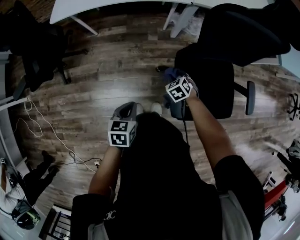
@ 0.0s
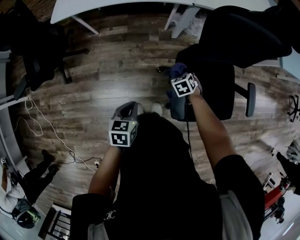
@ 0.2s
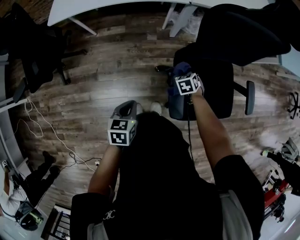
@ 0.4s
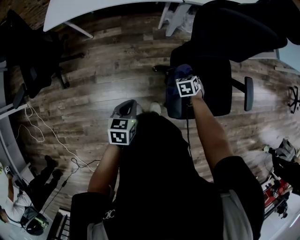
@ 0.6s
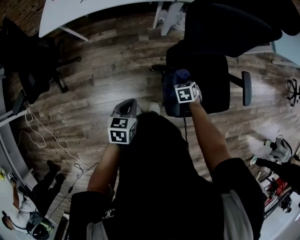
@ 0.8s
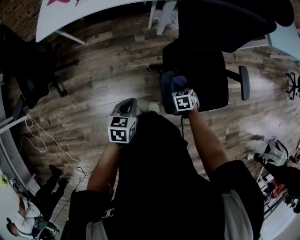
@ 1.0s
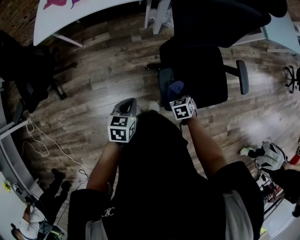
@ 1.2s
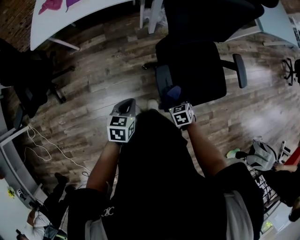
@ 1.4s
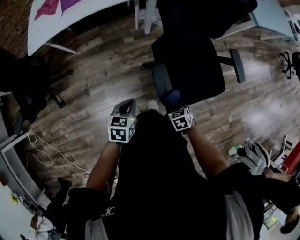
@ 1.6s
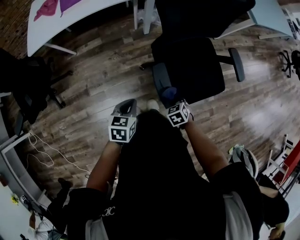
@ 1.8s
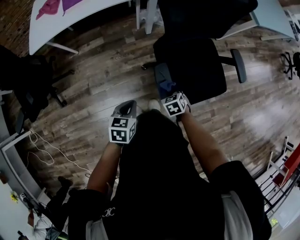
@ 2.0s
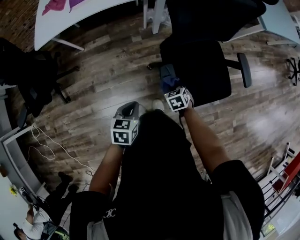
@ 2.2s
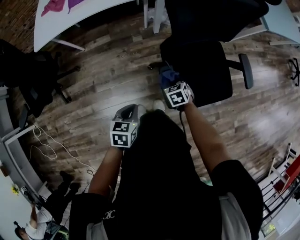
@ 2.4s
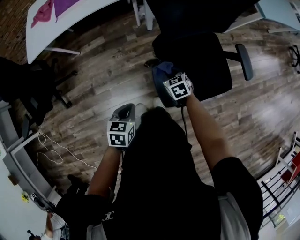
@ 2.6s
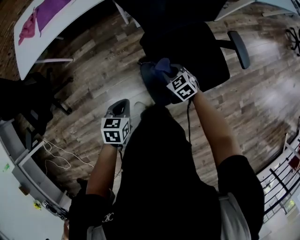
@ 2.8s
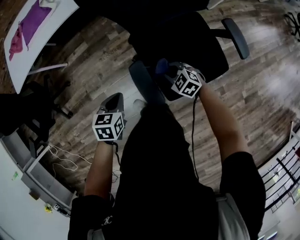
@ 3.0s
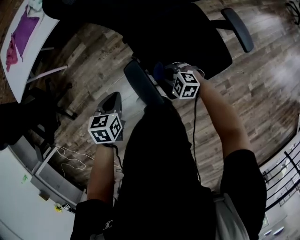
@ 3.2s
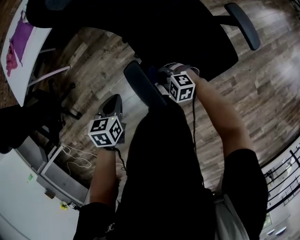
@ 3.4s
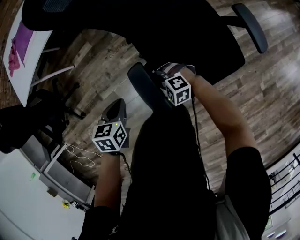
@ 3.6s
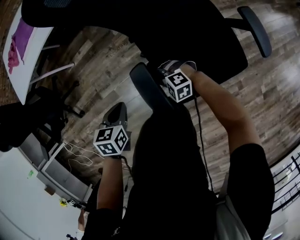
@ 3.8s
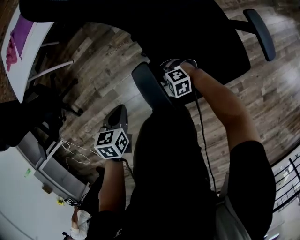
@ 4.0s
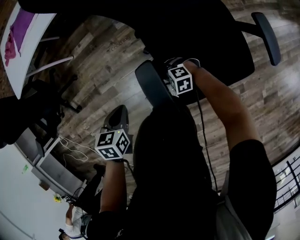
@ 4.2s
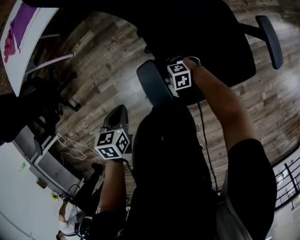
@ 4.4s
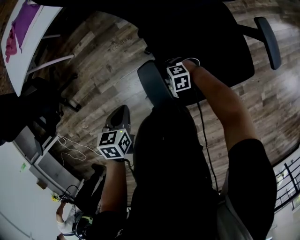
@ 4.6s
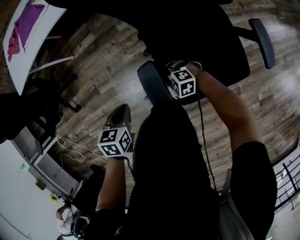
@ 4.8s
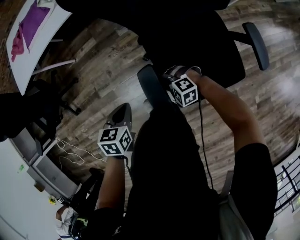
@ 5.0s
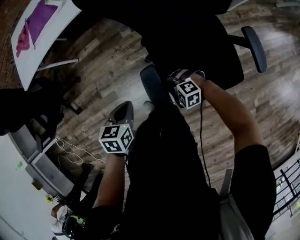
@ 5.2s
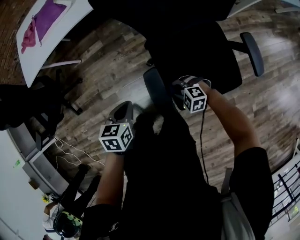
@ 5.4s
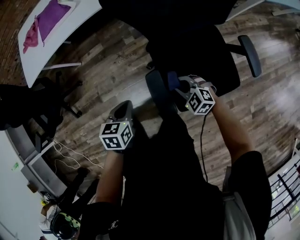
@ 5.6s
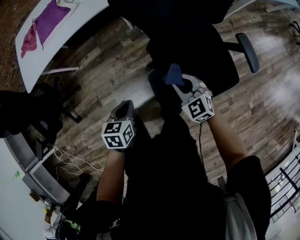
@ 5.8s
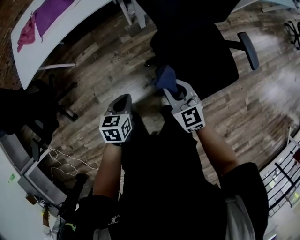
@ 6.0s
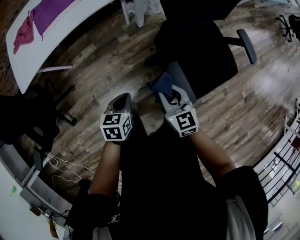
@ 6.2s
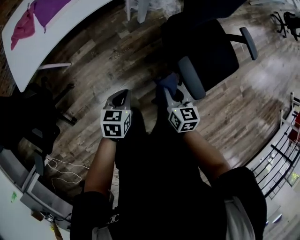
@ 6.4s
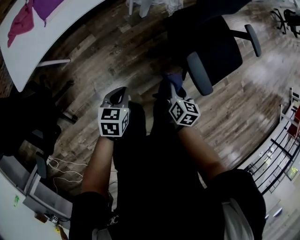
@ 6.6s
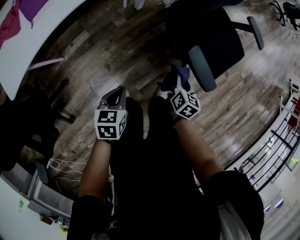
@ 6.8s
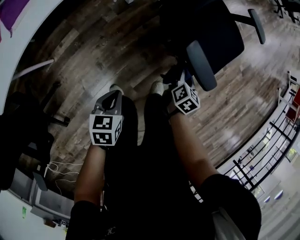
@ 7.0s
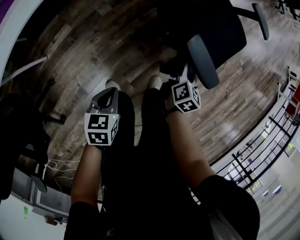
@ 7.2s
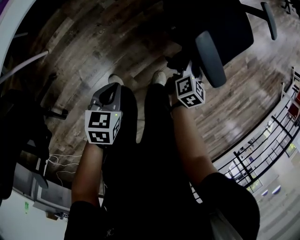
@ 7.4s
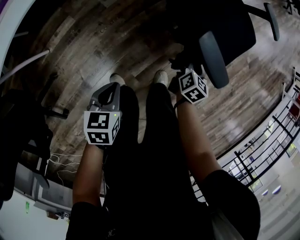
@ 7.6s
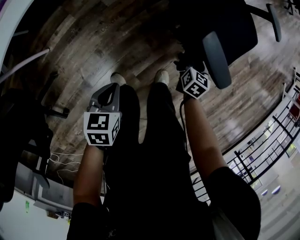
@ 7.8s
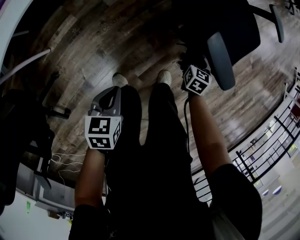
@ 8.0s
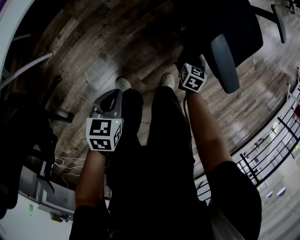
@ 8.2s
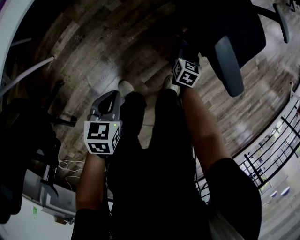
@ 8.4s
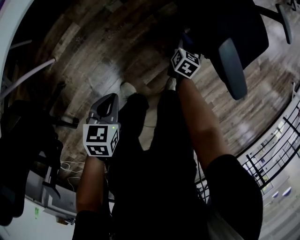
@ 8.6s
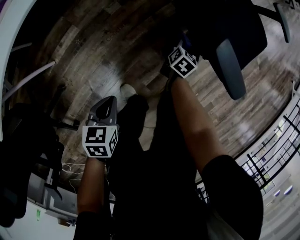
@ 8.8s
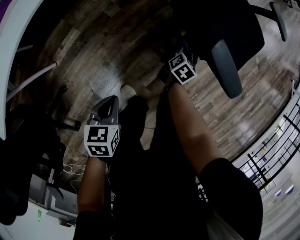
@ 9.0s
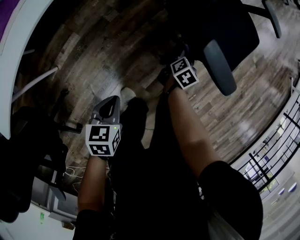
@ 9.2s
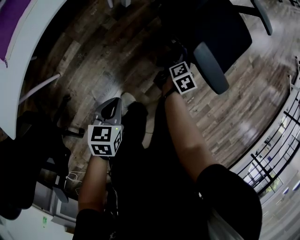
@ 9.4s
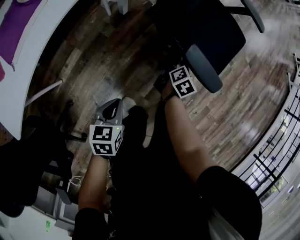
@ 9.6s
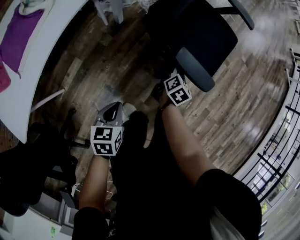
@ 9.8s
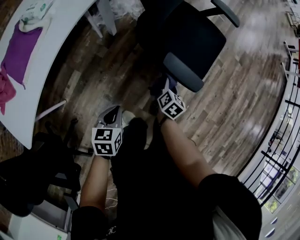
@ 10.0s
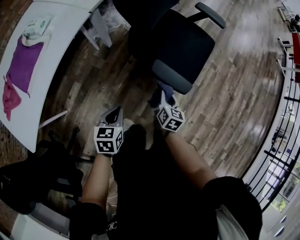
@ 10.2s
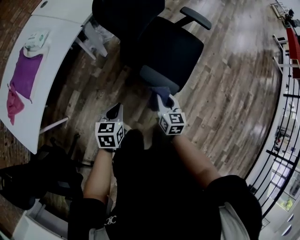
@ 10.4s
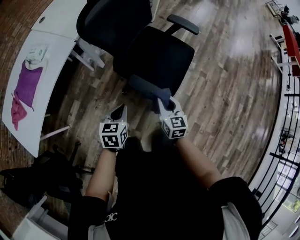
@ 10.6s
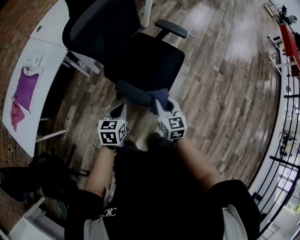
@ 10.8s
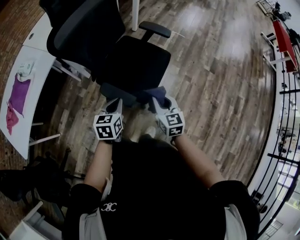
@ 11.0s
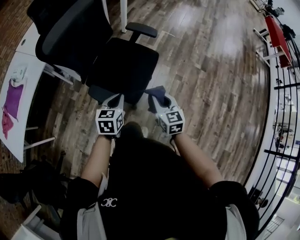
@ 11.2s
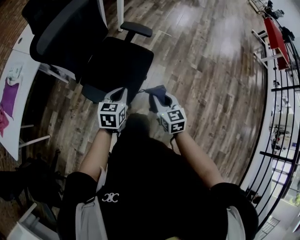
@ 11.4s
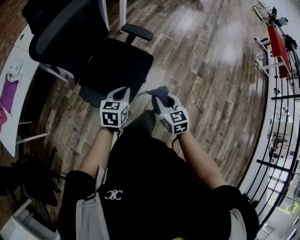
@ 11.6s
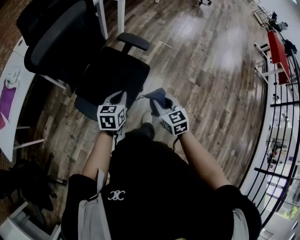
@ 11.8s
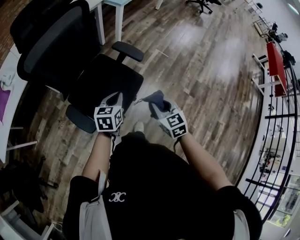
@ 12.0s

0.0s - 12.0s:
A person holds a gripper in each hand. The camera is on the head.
0.0s - 1.6s: The right gripper is displaced backward and to the right by about 20 cm, and turns by approximately 30 degrees.
1.6s - 3.0s: The right gripper moves forward, approximately 15 cm, and turns by some 30 degrees. The left gripper shifts approximately 5 cm forward.
3.0s - 4.4s: The left gripper moves downward, some 5 cm, while the right gripper shifts about 15 cm downward, and turns by approximately 40 degrees.
4.4s - 6.0s: The right gripper shifts approximately 30 cm upward, and angles its fingers upward, by roughly 30 degrees. The left gripper goes some 5 cm upward.
6.0s - 7.6s: The left gripper changes place by some 20 cm, and rotates some 20 degrees. Meanwhile the right gripper travels downward by some 25 cm, and turns by about 80 degrees.
7.6s - 9.0s: The right gripper heads downward and to the left, covering approximately 15 cm. Meanwhile the left gripper shifts by approximately 5 cm.
9.0s - 10.4s: The left gripper goes approximately 25 cm upward, forward and to the right, while the right gripper goes roughly 30 cm upward, and rotates approximately 30 degrees.
10.4s - 12.0s: Both grippers are carried to the right and forward, some 50 cm. The right gripper turns by about 30 degrees.

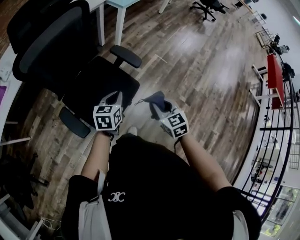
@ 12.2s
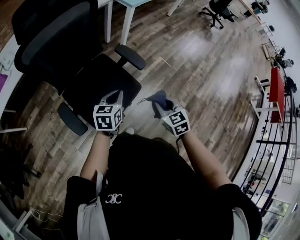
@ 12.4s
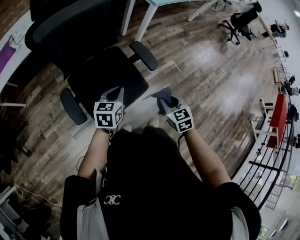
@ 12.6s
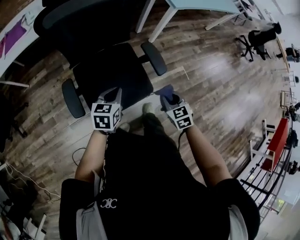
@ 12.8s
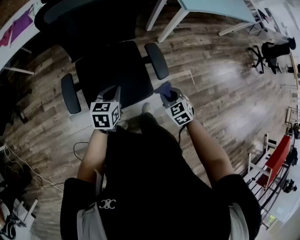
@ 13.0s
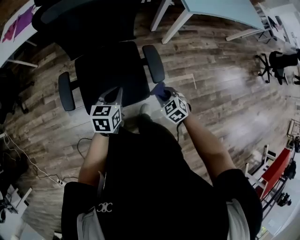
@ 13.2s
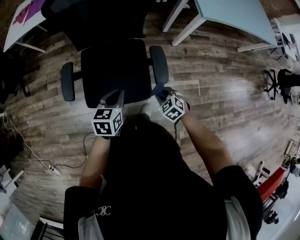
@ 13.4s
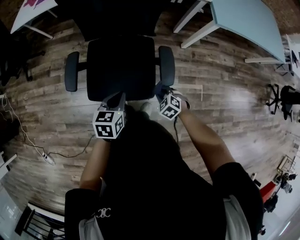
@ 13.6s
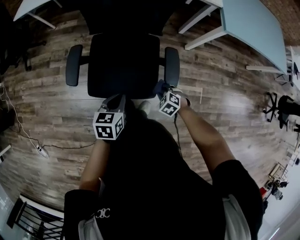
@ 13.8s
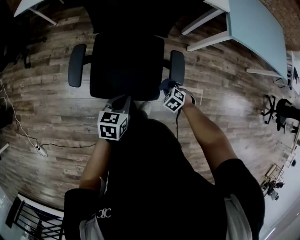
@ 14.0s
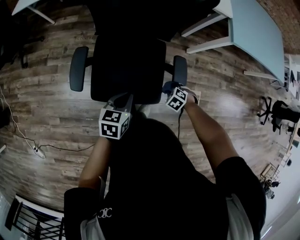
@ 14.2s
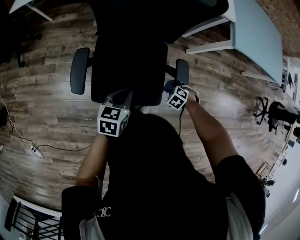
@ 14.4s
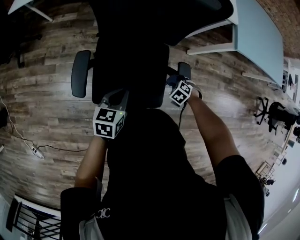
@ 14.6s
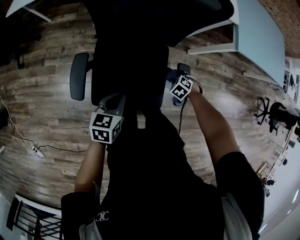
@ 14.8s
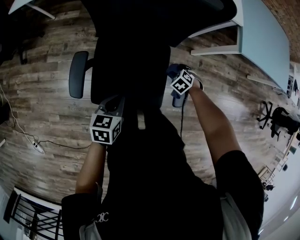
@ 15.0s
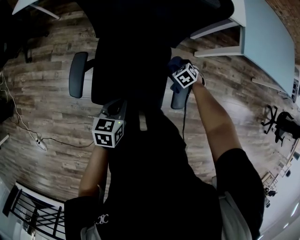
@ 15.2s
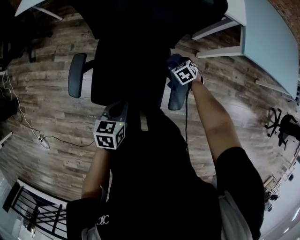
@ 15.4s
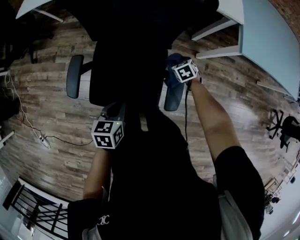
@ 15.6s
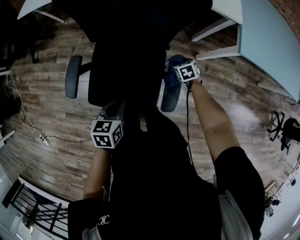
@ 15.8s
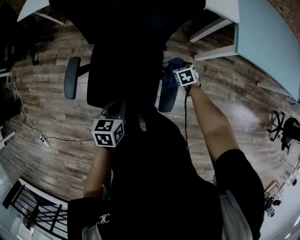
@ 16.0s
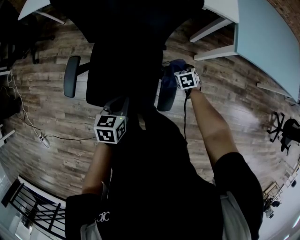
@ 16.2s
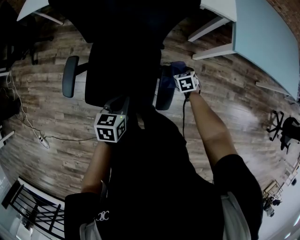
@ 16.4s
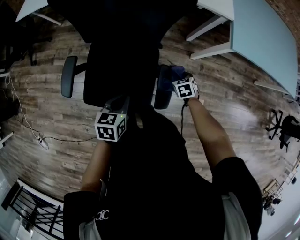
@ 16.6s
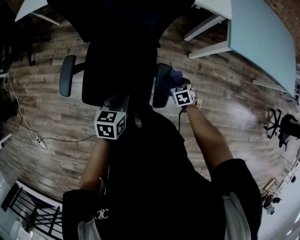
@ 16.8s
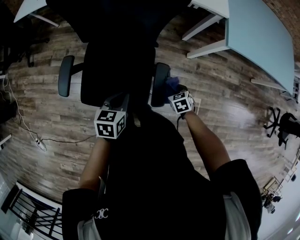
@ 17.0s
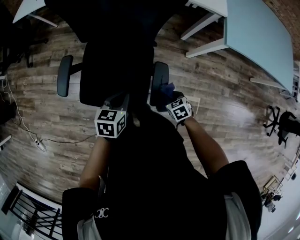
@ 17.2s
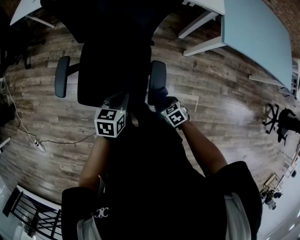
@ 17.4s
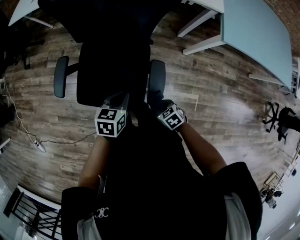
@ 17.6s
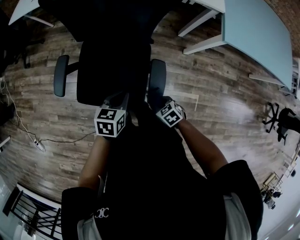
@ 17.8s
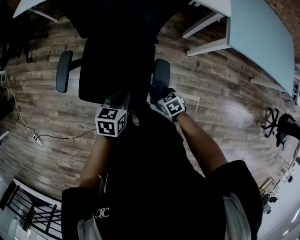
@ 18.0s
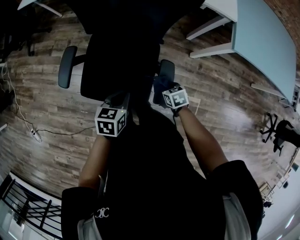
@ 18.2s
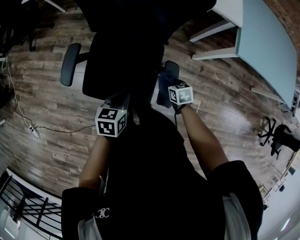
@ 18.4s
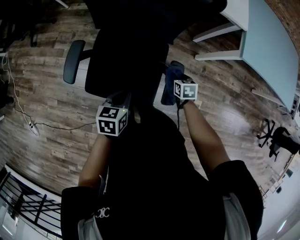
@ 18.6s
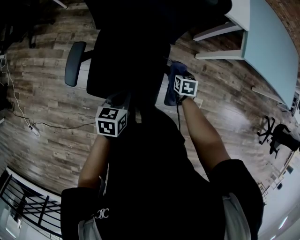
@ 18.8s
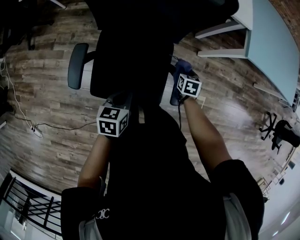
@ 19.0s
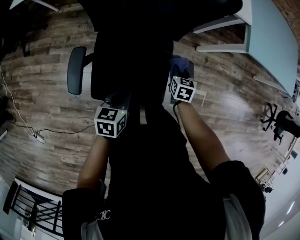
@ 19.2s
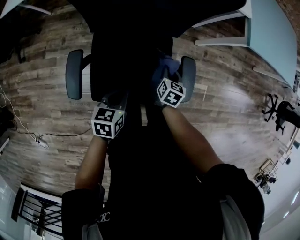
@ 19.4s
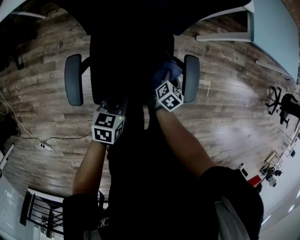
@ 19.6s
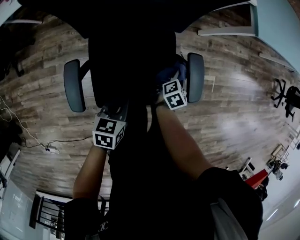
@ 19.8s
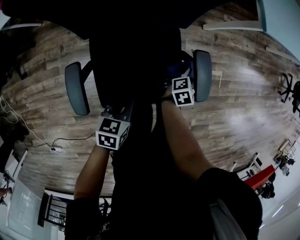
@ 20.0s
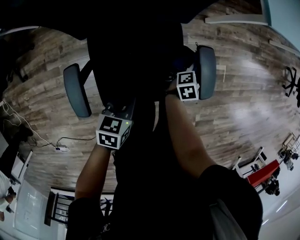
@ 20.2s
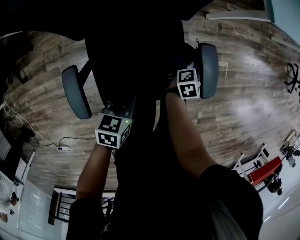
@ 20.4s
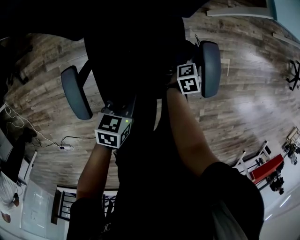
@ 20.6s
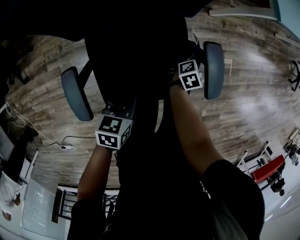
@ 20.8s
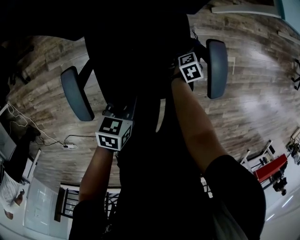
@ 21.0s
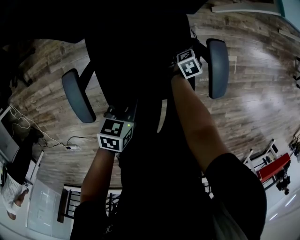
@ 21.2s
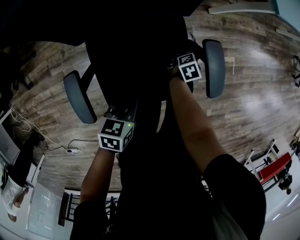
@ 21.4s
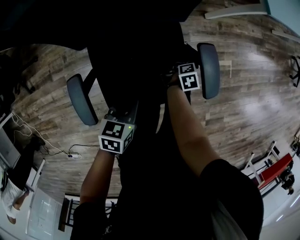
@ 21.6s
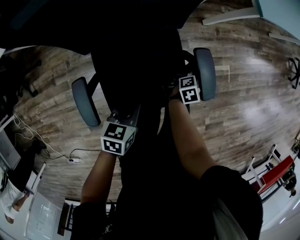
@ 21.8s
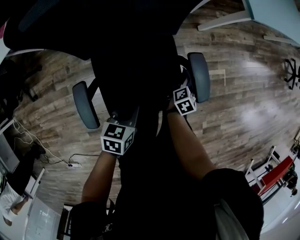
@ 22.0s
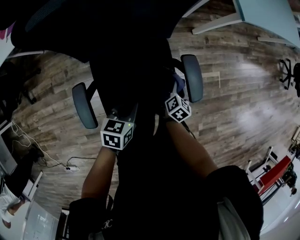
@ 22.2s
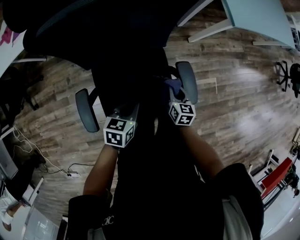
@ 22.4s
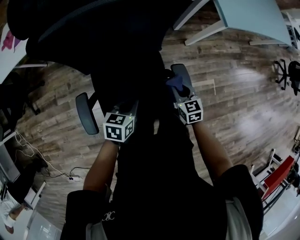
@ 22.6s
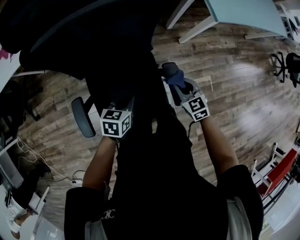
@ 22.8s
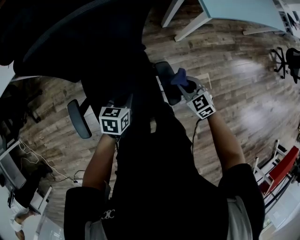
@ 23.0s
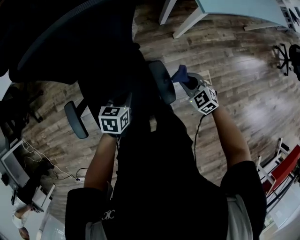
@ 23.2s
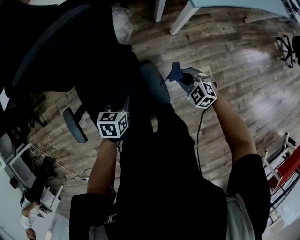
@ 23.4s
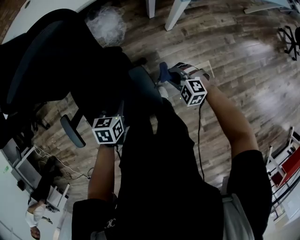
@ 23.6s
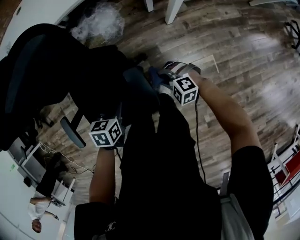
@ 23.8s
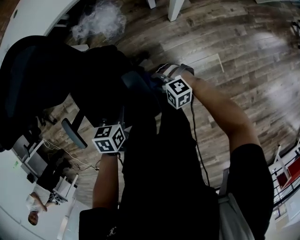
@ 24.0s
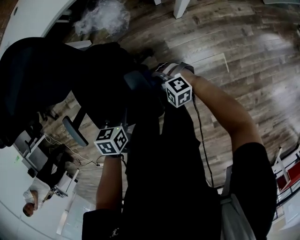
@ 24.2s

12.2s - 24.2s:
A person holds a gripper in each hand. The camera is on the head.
12.2s - 13.8s: The right gripper moves downward, some 20 cm, and angles its fingers downward, by about 40 degrees. The left gripper changes place by some 5 cm, and swivels roughly 50 degrees.
13.8s - 15.2s: The right gripper changes place by roughly 25 cm. Meanwhile the left gripper changes place by some 10 cm.
15.2s - 16.6s: The grippers both shift to the right by some 10 cm. The right gripper changes its angle by some 20 degrees.
16.6s - 18.2s: The right gripper heads backward and to the left, covering approximately 10 cm.
18.2s - 19.8s: The right gripper changes its angle by about 100 degrees; the left gripper shifts by about 15 cm, and turns by approximately 20 degrees.
19.8s - 21.2s: The right gripper goes approximately 15 cm downward and forward; the left gripper travels downward by about 5 cm.
21.2s - 22.6s: The left gripper goes roughly 10 cm upward, while the right gripper moves upward, some 20 cm, and changes its angle by some 70 degrees.
22.6s - 24.2s: The right gripper is displaced downward by some 10 cm, and changes its angle by roughly 70 degrees. The left gripper changes place by approximately 15 cm, and turns by roughly 20 degrees.
